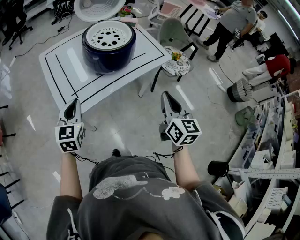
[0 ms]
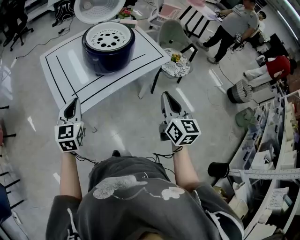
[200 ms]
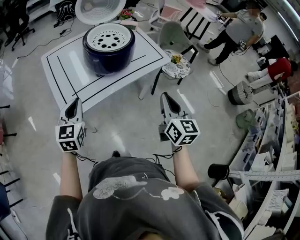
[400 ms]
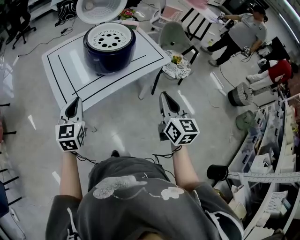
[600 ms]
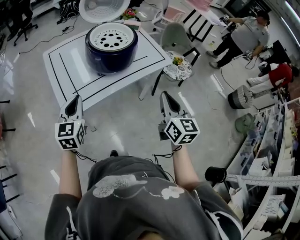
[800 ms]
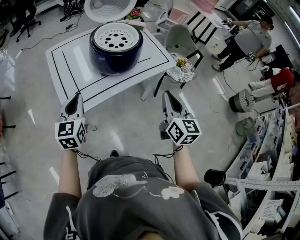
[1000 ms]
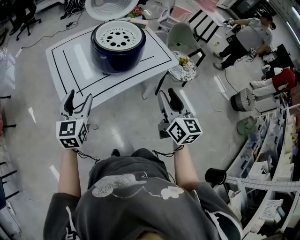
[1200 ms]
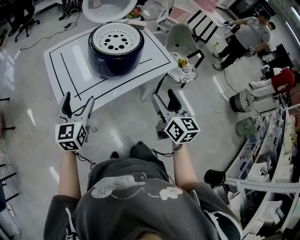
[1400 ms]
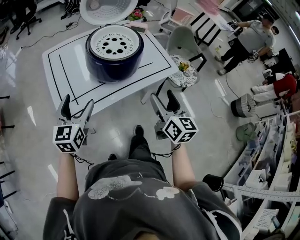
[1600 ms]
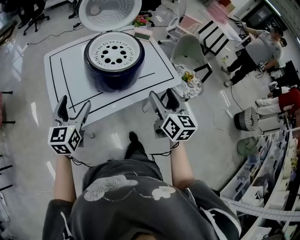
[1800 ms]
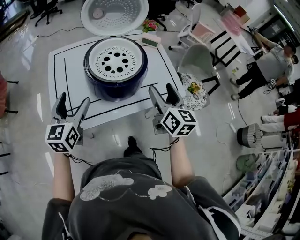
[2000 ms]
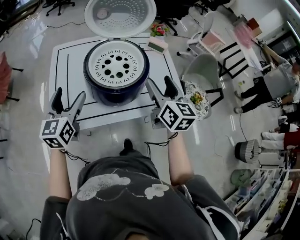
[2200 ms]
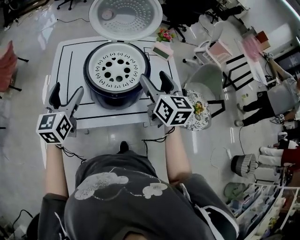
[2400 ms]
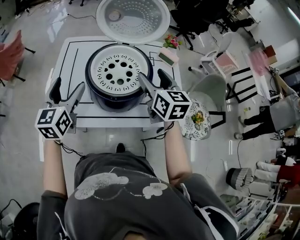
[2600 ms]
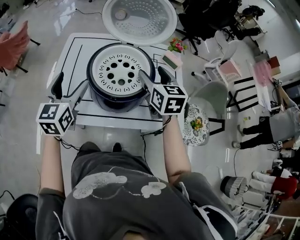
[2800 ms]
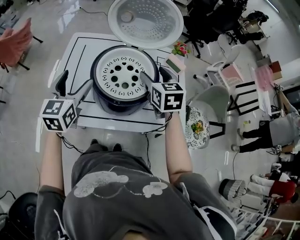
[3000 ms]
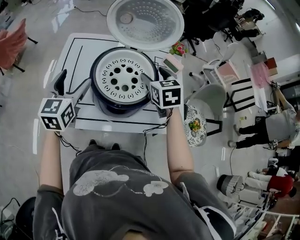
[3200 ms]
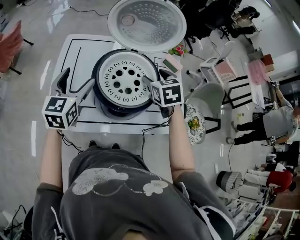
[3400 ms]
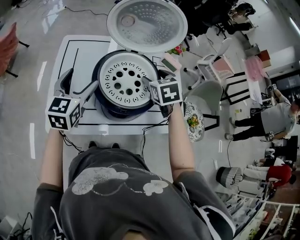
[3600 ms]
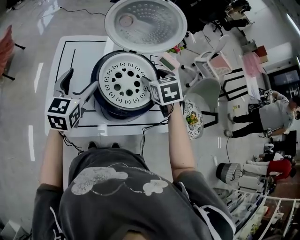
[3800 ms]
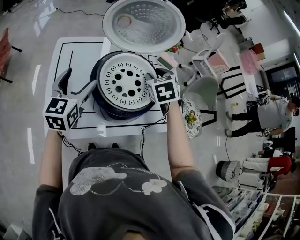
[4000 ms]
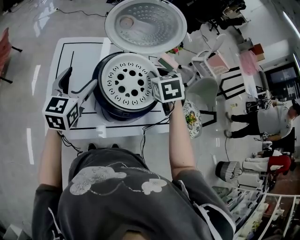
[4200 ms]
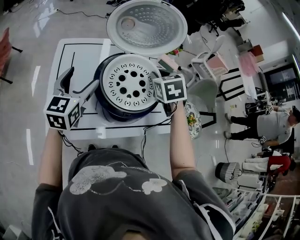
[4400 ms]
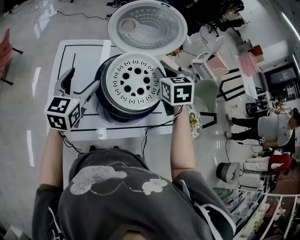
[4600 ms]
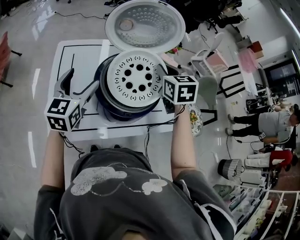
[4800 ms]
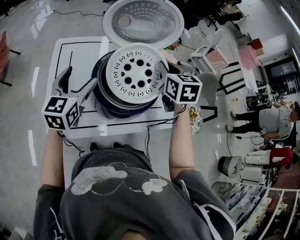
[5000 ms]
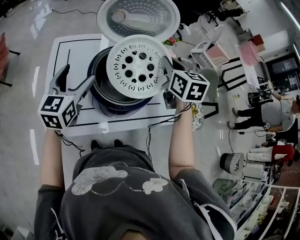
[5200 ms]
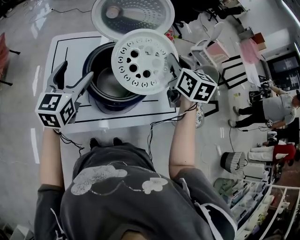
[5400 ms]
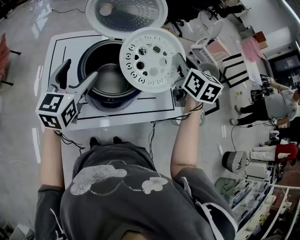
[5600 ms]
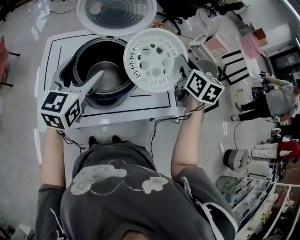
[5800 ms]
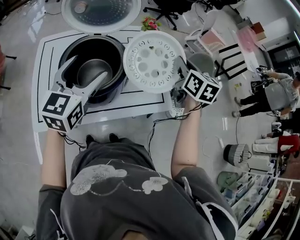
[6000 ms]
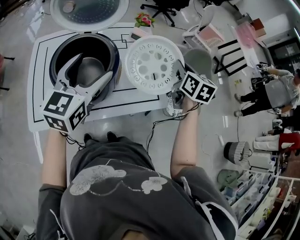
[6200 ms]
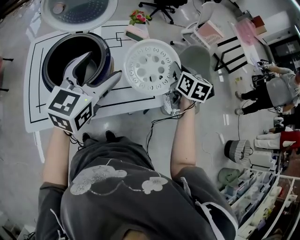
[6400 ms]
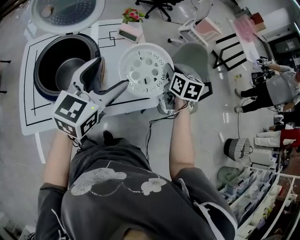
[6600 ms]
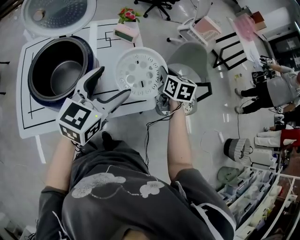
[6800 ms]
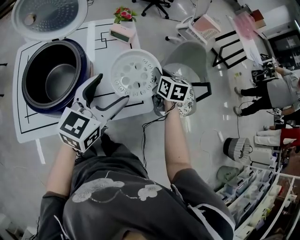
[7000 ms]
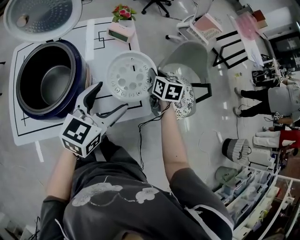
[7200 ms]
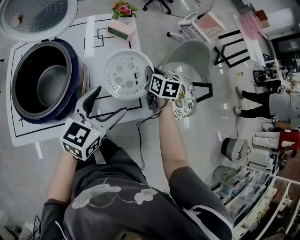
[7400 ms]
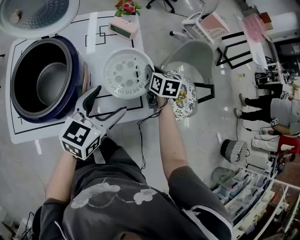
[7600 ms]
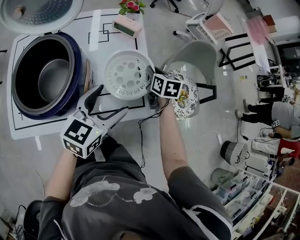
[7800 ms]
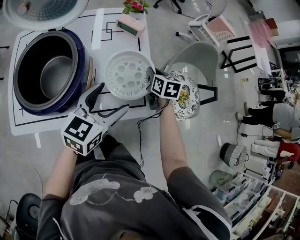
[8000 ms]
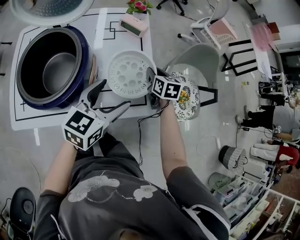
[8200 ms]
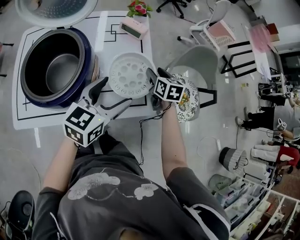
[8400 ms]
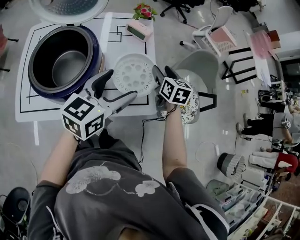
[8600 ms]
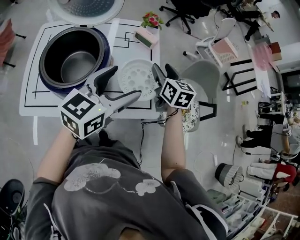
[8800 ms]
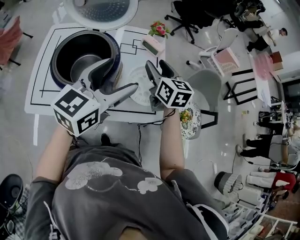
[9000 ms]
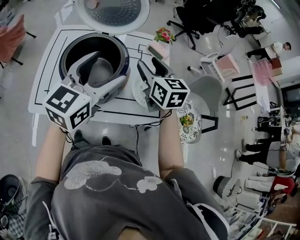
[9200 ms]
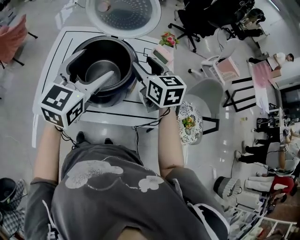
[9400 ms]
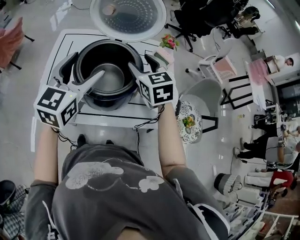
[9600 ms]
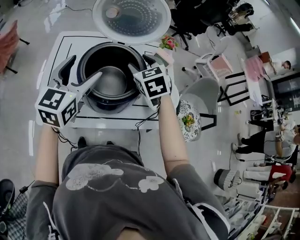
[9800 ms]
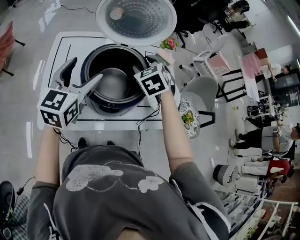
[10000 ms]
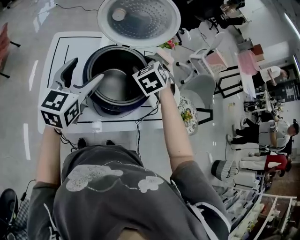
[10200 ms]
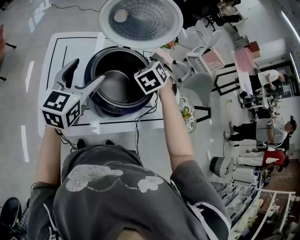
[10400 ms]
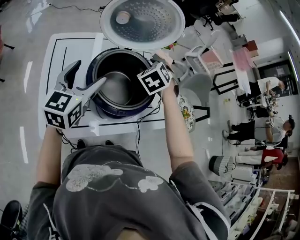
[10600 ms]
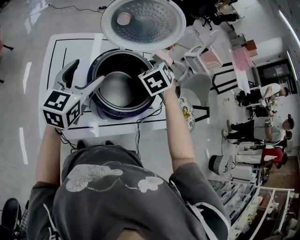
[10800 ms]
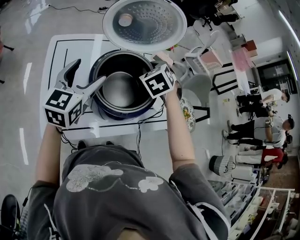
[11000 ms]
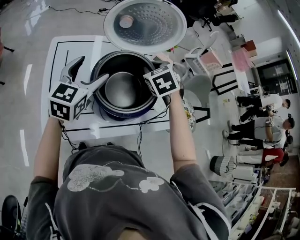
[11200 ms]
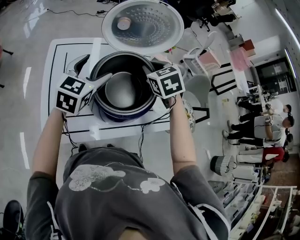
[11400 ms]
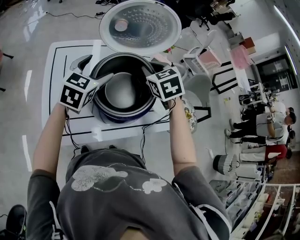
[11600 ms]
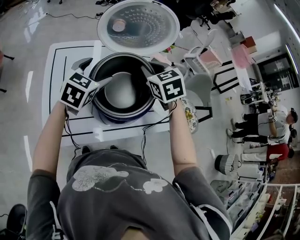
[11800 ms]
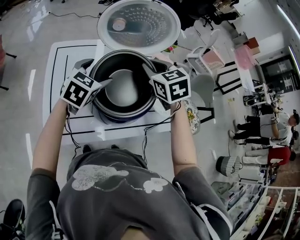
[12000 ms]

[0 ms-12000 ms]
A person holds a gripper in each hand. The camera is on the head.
0 ms to 1600 ms: The right gripper heads forward, covering some 10 cm, and opens its fingers; the left gripper shifts by about 5 cm, and opens.
1600 ms to 3000 ms: The right gripper moves some 30 cm, and swivels roughly 50 degrees; the left gripper ends up approximately 15 cm from where it was, and changes its angle by some 30 degrees.
3000 ms to 4400 ms: The right gripper turns by some 20 degrees, and closes up; the left gripper heads forward, covering some 5 cm.
4400 ms to 6000 ms: Both grippers travel together to the right, approximately 20 cm. The right gripper rotates roughly 40 degrees.
6000 ms to 7600 ms: The right gripper heads downward, covering approximately 25 cm, while the left gripper moves to the right and downward, roughly 25 cm, and rotates approximately 20 degrees.
7600 ms to 9000 ms: Both grippers move upward and to the left, approximately 20 cm. The right gripper swivels roughly 30 degrees, and opens up.
9000 ms to 10400 ms: The left gripper heads to the left, covering about 30 cm. Meanwhile the right gripper moves to the left, about 20 cm, and tilts its fingers roughly 30 degrees downward.
10400 ms to 12000 ms: The right gripper shifts some 10 cm upward, rotates some 30 degrees, and closes its fingers. The left gripper shifts roughly 10 cm downward and forward, and swivels roughly 30 degrees.

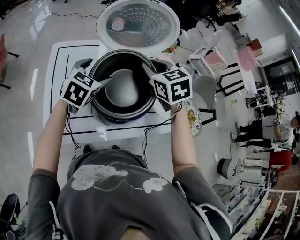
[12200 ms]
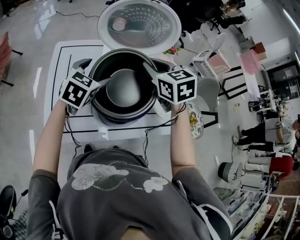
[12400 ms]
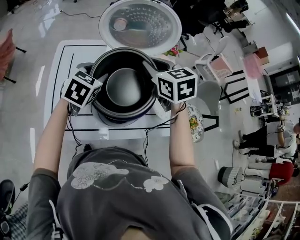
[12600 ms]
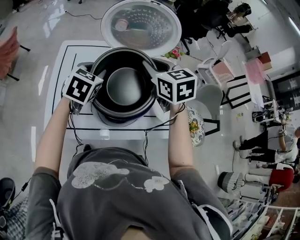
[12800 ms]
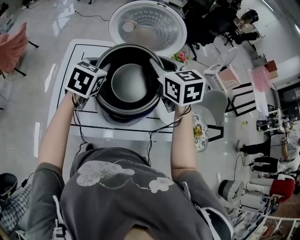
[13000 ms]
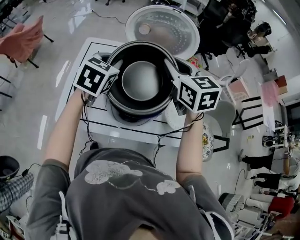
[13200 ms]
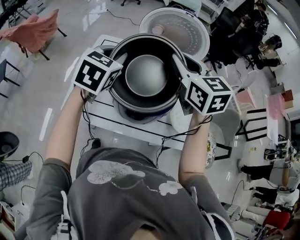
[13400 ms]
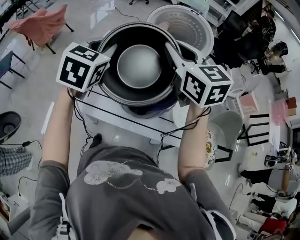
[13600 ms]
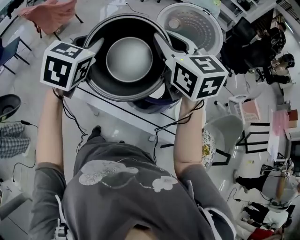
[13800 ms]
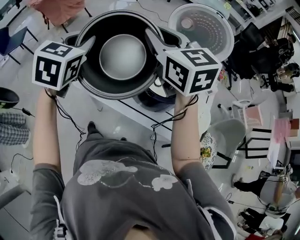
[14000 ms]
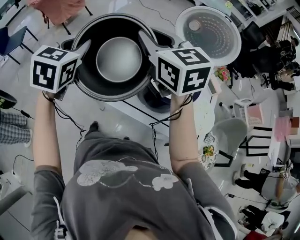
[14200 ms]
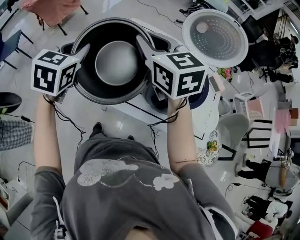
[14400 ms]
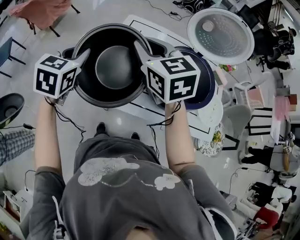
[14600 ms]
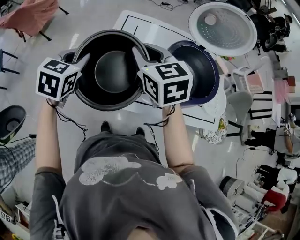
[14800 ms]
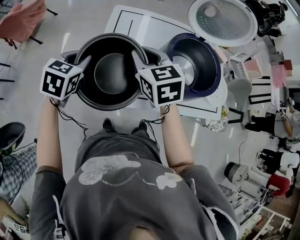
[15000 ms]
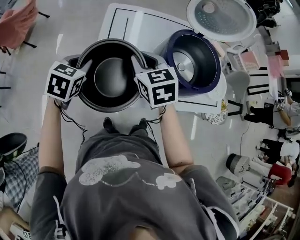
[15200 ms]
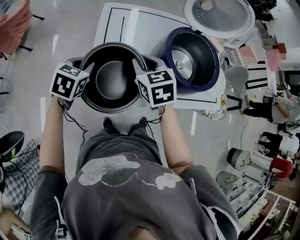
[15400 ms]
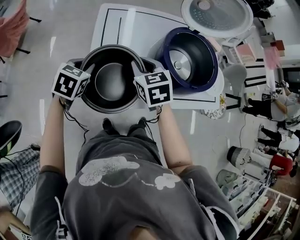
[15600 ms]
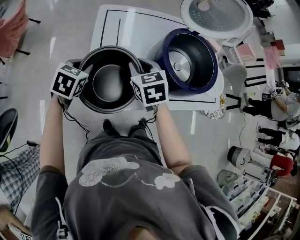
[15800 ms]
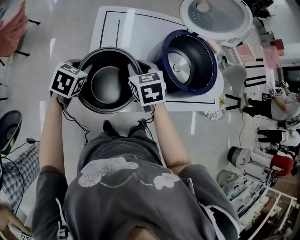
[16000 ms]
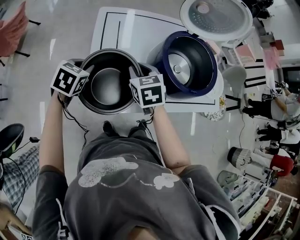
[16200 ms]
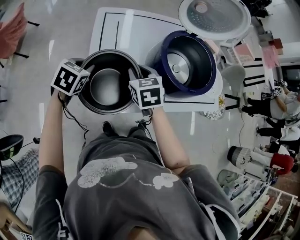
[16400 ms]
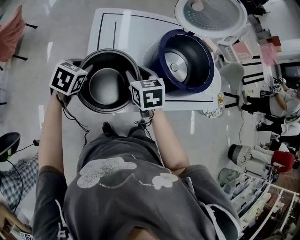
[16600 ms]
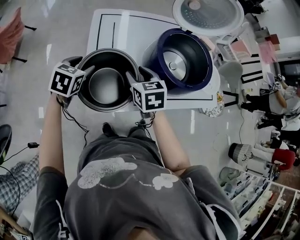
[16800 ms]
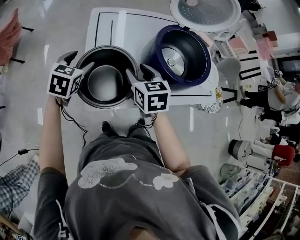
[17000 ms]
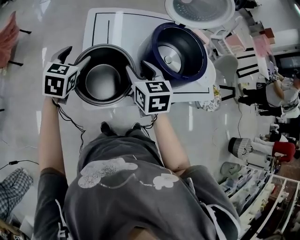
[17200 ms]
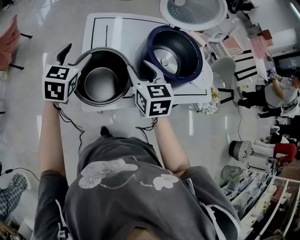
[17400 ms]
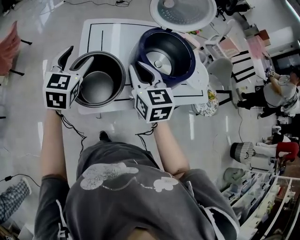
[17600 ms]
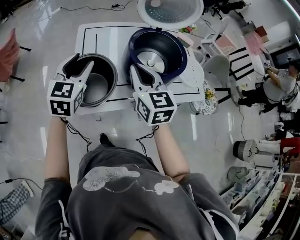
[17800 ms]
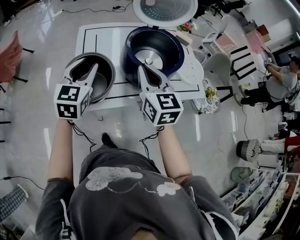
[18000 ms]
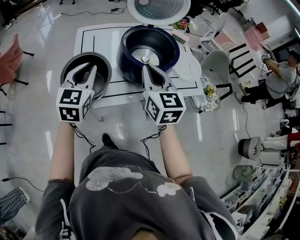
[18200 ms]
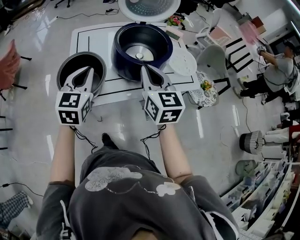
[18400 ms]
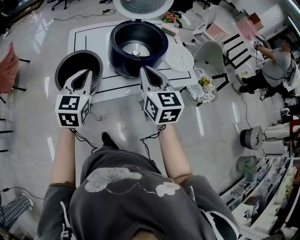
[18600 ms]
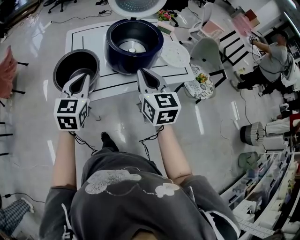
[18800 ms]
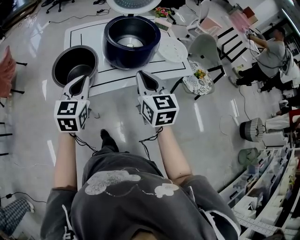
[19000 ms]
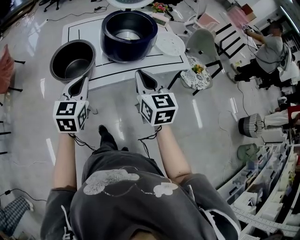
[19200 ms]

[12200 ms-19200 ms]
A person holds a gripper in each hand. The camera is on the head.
12200 ms to 13600 ms: Both grippers travel together upward, about 15 cm. The left gripper changes its angle by some 30 degrees, and closes. The right gripper swivels approximately 30 degrees.
13600 ms to 15000 ms: The right gripper ends up roughly 30 cm from where it was, and turns by approximately 20 degrees; the left gripper changes place by roughly 30 cm, and rotates some 20 degrees.
15000 ms to 16400 ms: Both grippers move downward, some 10 cm.
16400 ms to 17800 ms: The left gripper goes roughly 20 cm upward and to the right, angles its fingers upward, by roughly 30 degrees, and opens its fingers. The right gripper travels upward, to the right and backward by some 20 cm, and angles its fingers upward, by roughly 30 degrees.
17800 ms to 19200 ms: The grippers both shift backward and to the right by some 20 cm. The left gripper closes its fingers.

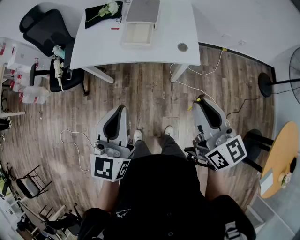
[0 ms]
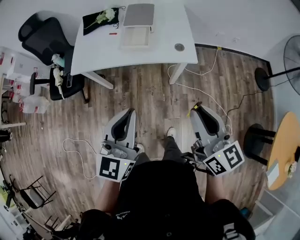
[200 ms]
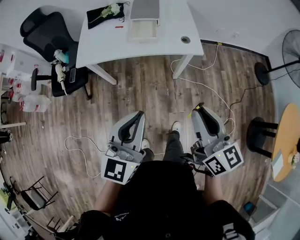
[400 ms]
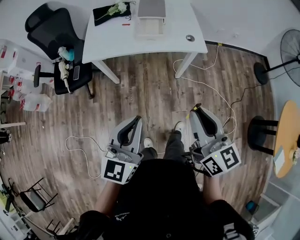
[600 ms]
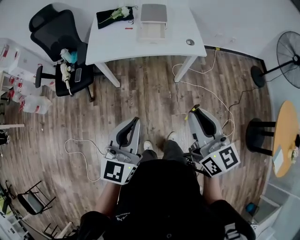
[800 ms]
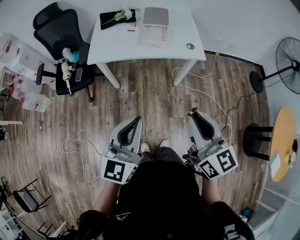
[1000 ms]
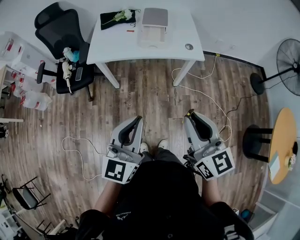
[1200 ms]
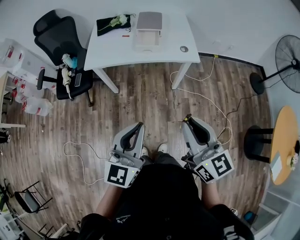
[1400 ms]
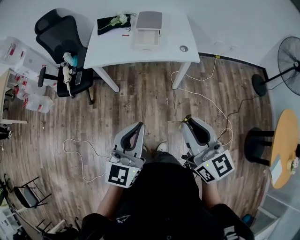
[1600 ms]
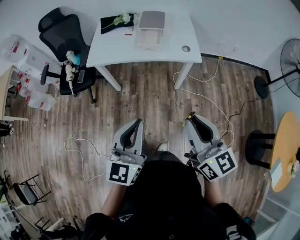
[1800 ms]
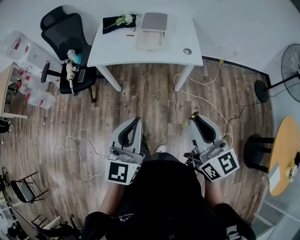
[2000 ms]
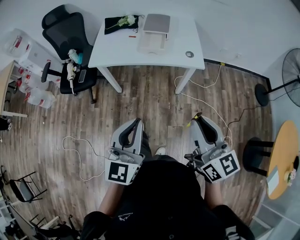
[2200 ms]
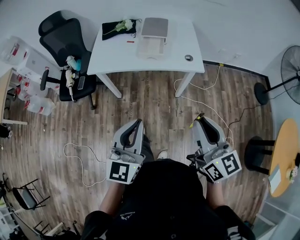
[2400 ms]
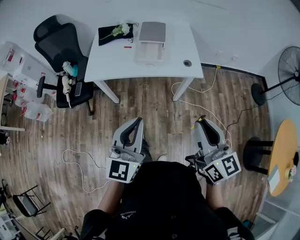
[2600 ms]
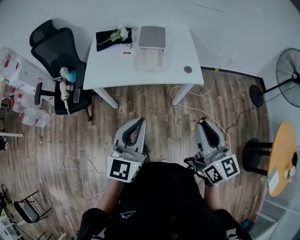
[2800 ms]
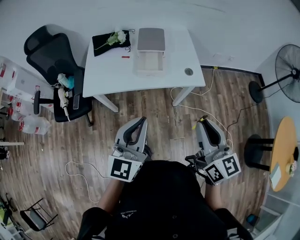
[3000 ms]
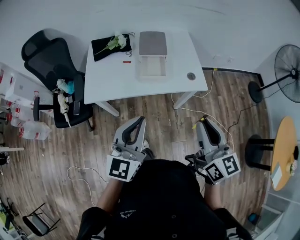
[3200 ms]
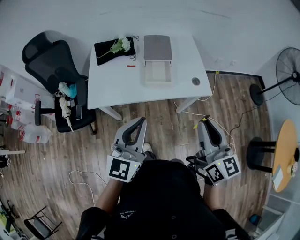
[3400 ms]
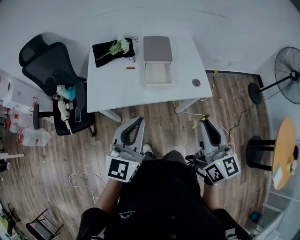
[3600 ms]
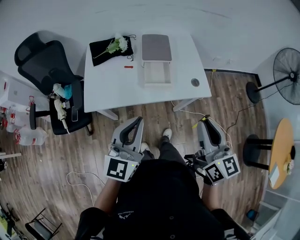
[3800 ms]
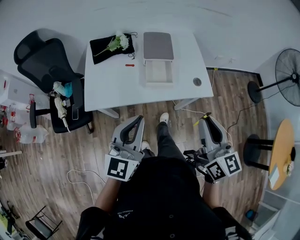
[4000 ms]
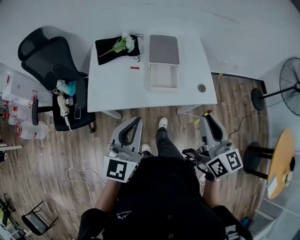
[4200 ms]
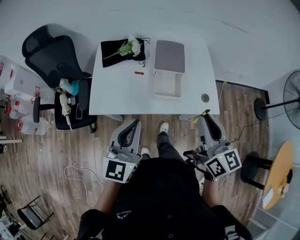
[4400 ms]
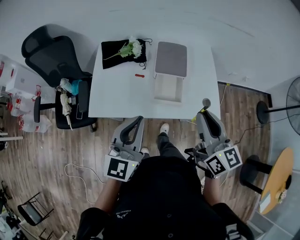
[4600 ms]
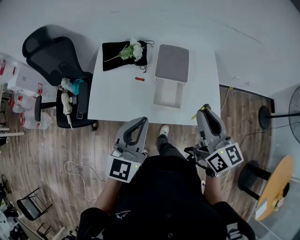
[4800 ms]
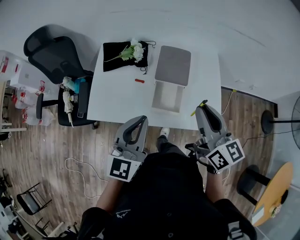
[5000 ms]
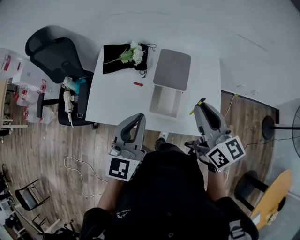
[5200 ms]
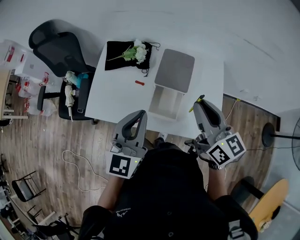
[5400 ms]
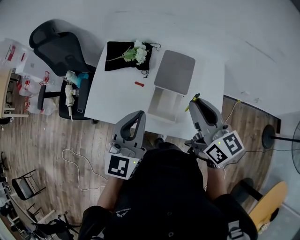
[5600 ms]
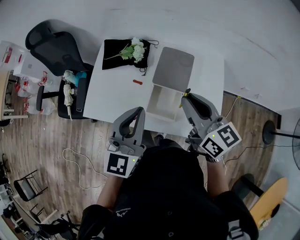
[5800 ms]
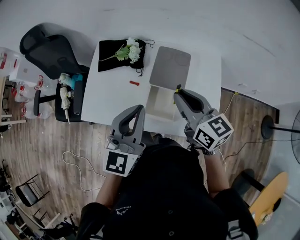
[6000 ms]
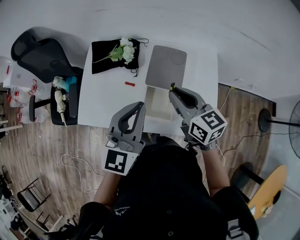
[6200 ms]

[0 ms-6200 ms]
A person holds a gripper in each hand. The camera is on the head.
0 ms to 1600 ms: The right gripper is displaced backward and to the left by approximately 25 cm. The left gripper moves backward, approximately 20 cm.
1600 ms to 3200 ms: The grippers both shift forward by some 25 cm.
3200 ms to 4600 ms: Both grippers travel together forward, approximately 20 cm.
4600 ms to 6200 ms: The left gripper is displaced forward and to the right by roughly 20 cm; the right gripper travels forward and downward by some 25 cm, and rotates about 30 degrees.
